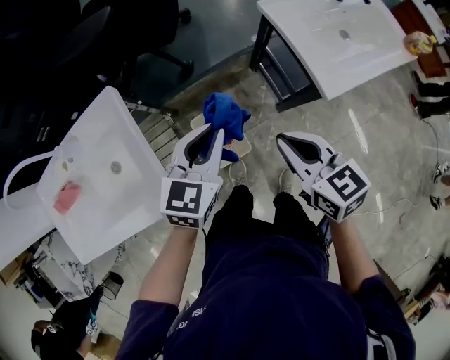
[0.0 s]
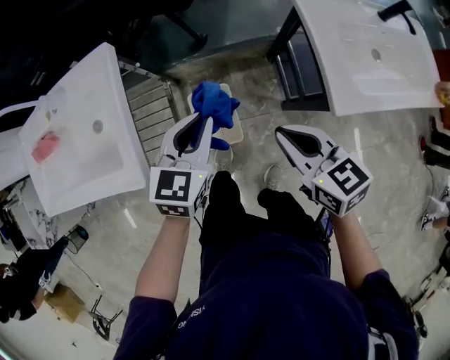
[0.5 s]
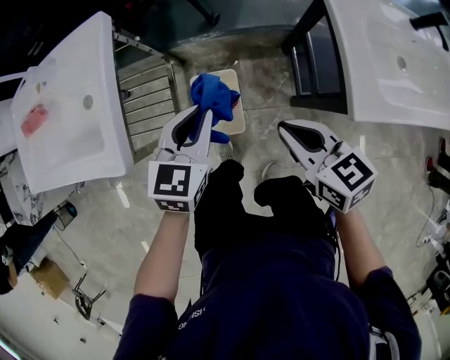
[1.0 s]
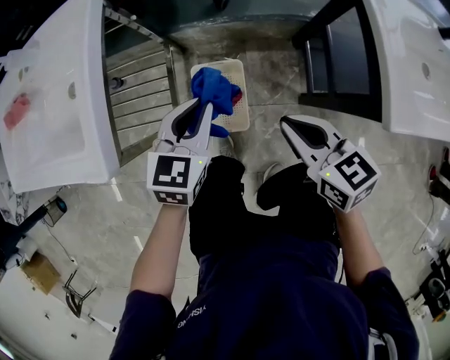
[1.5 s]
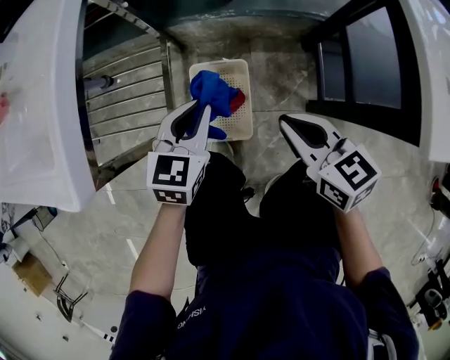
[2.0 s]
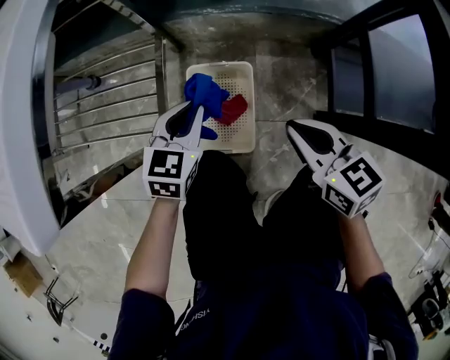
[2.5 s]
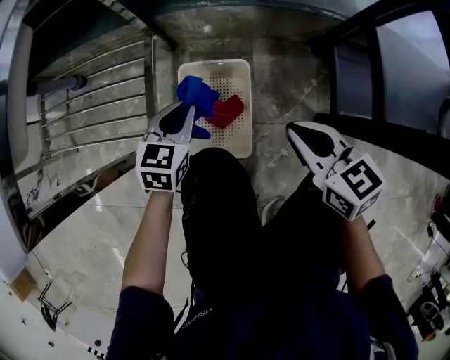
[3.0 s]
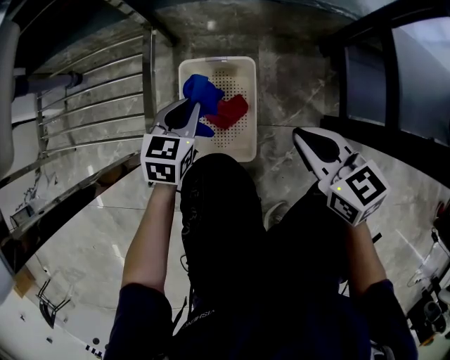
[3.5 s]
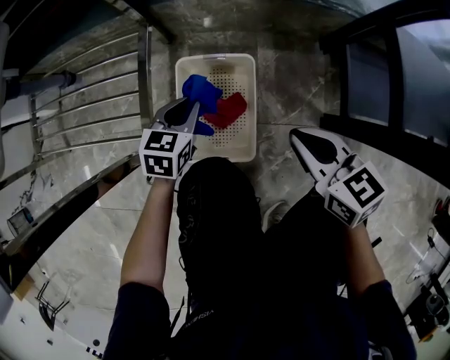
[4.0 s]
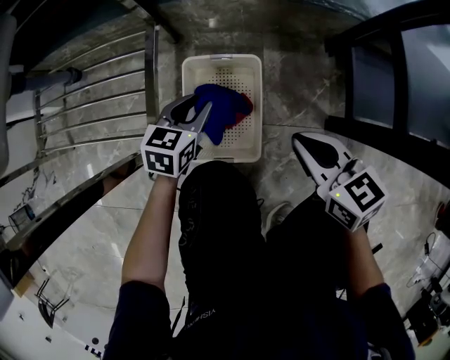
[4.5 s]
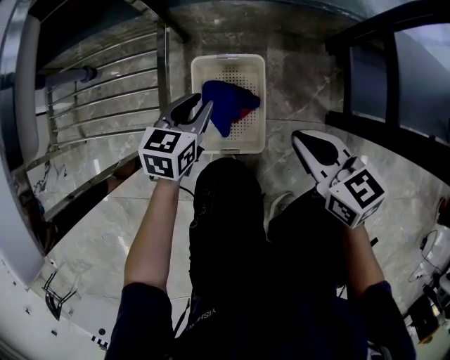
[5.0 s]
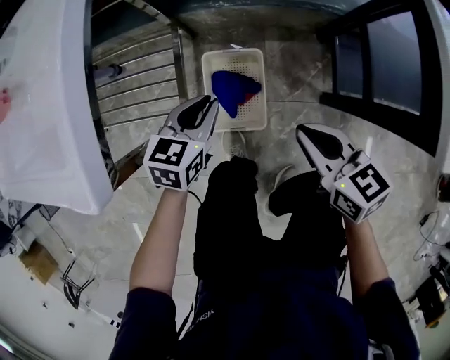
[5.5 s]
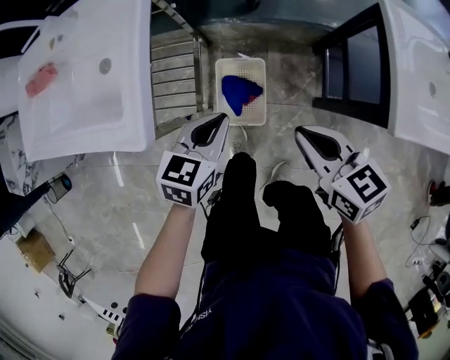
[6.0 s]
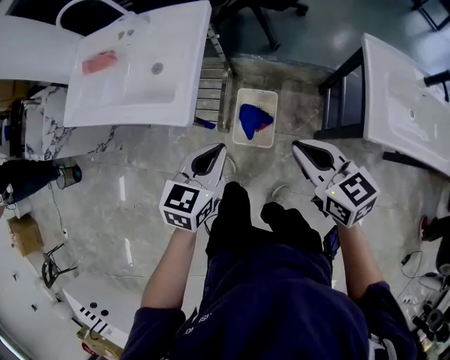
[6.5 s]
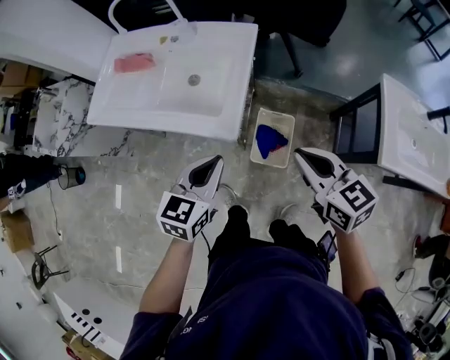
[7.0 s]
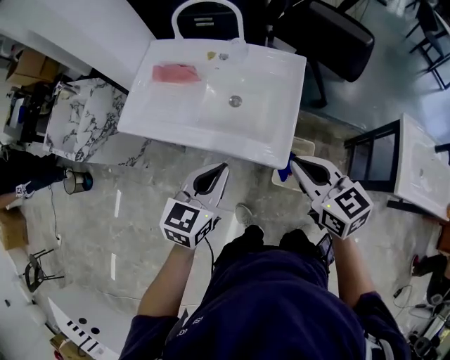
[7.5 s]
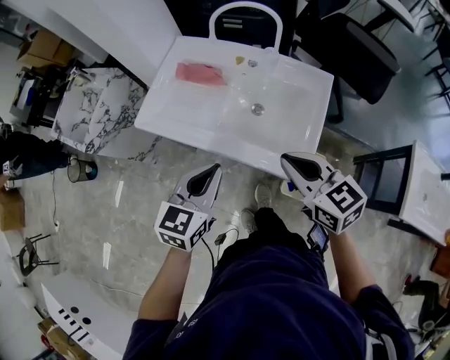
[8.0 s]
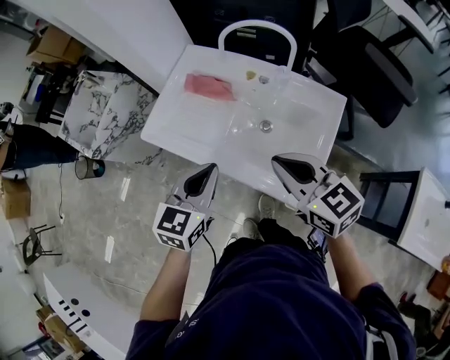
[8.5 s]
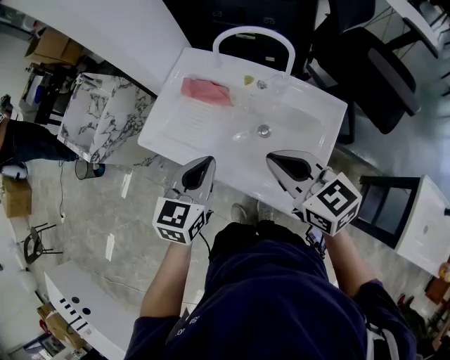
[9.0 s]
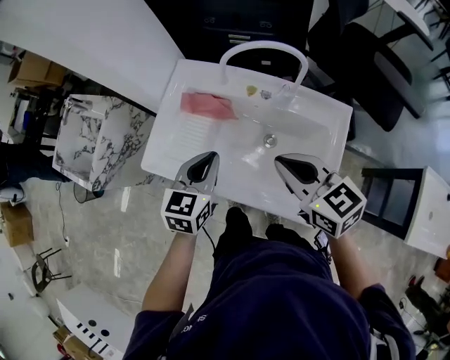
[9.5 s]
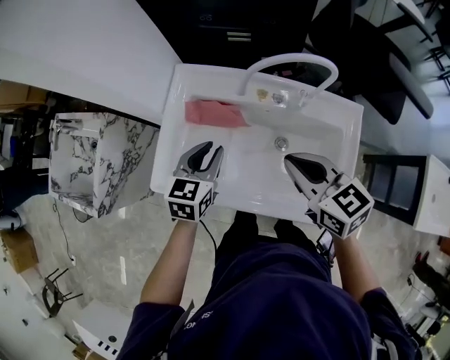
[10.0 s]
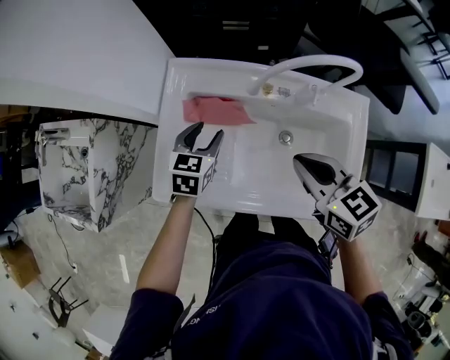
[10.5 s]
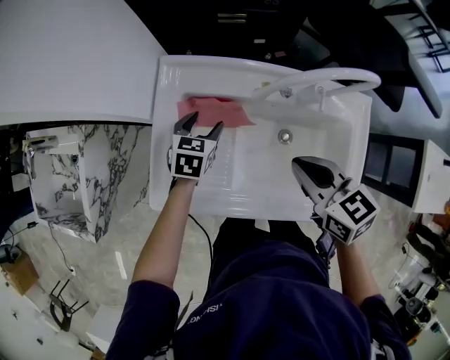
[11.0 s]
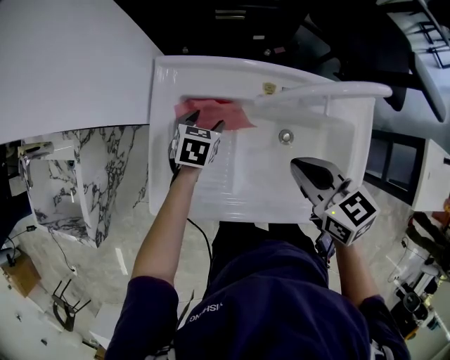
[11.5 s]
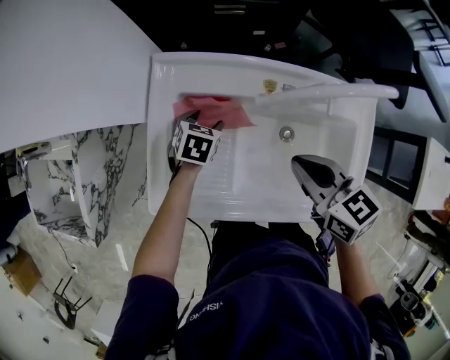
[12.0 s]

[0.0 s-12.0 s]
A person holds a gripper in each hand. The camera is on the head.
0.0 to 2.0 s: The grippers both shift downward by approximately 30 cm. The right gripper swivels roughly 30 degrees. Meanwhile the left gripper swivels approximately 30 degrees.
2.0 to 4.0 s: Both grippers move downward, approximately 25 cm.
4.0 to 6.0 s: The grippers both shift upward by about 40 cm.
6.0 to 8.0 s: Both grippers are carried to the left, some 40 cm. Both grippers travel together upward, roughly 25 cm. The right gripper swivels approximately 30 degrees. Meanwhile the left gripper turns by some 30 degrees.
8.0 to 10.0 s: Both grippers move forward, roughly 25 cm.
10.0 to 12.0 s: The left gripper travels downward and forward by approximately 20 cm, turns by about 30 degrees, and opens. Meanwhile the right gripper goes some 10 cm downward and forward.

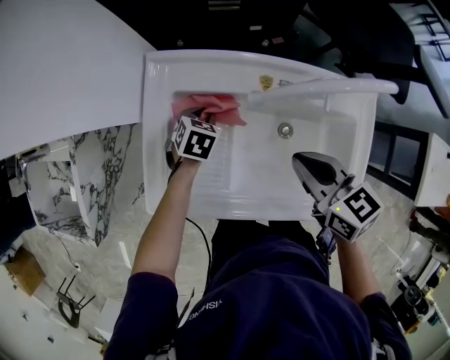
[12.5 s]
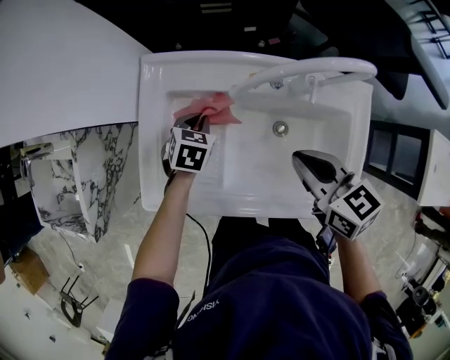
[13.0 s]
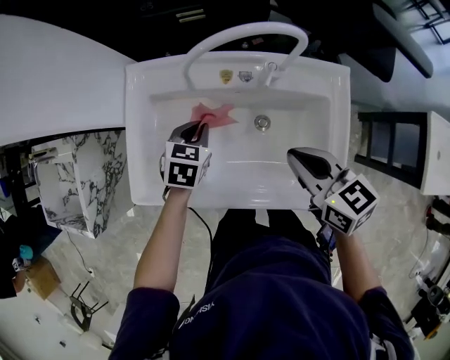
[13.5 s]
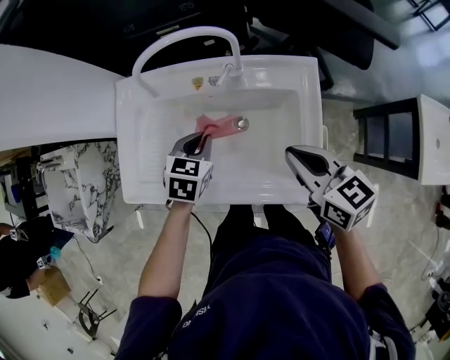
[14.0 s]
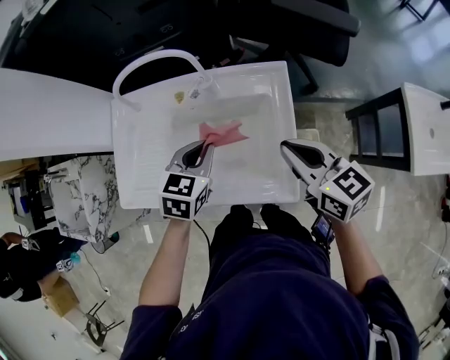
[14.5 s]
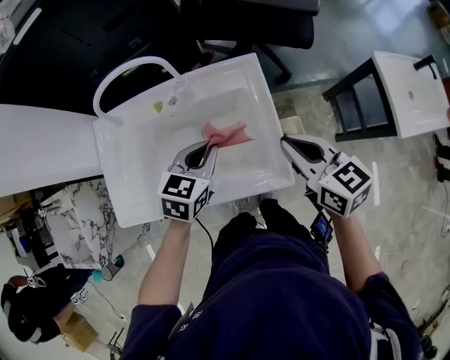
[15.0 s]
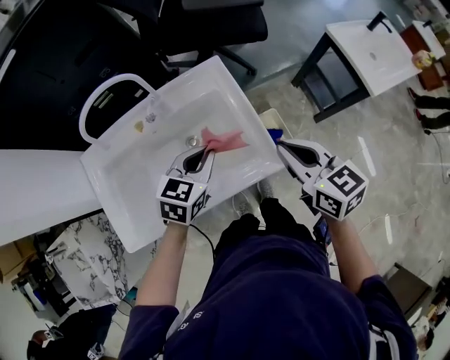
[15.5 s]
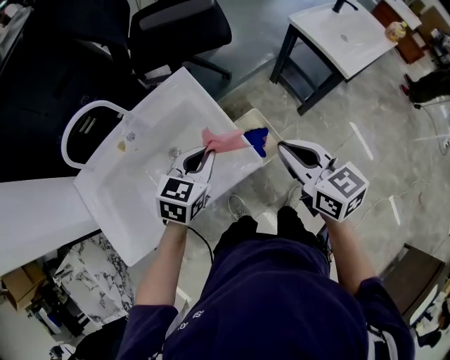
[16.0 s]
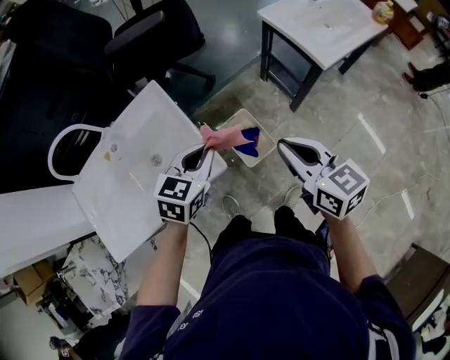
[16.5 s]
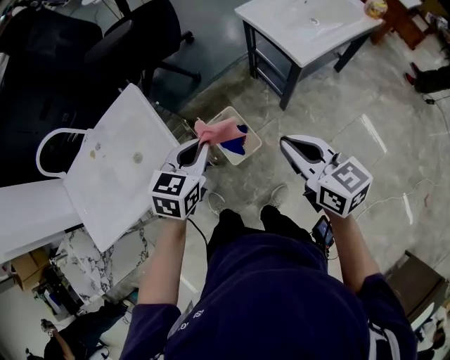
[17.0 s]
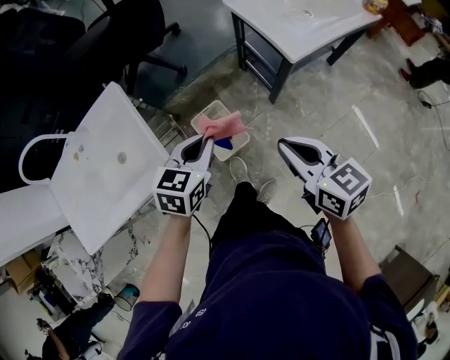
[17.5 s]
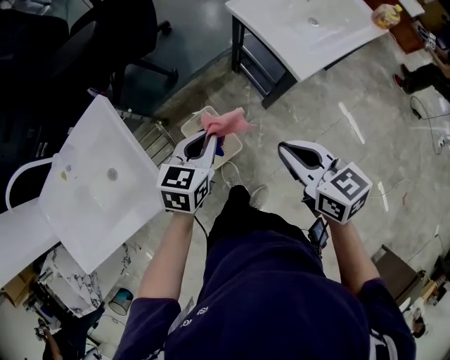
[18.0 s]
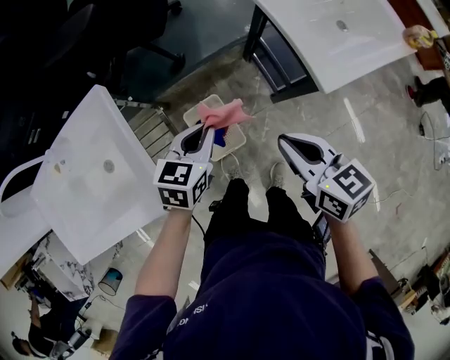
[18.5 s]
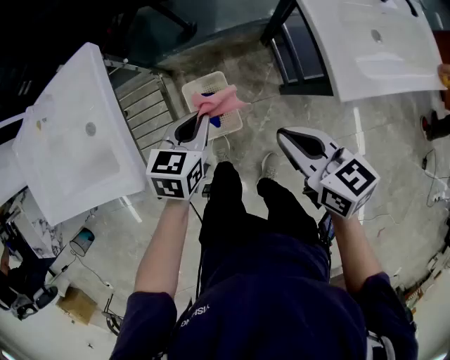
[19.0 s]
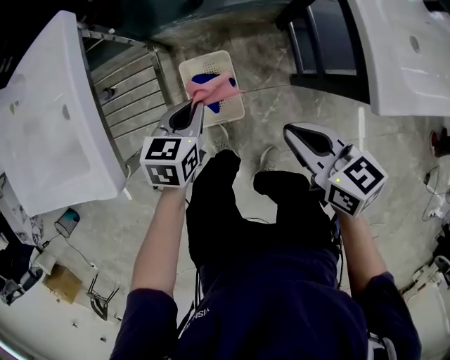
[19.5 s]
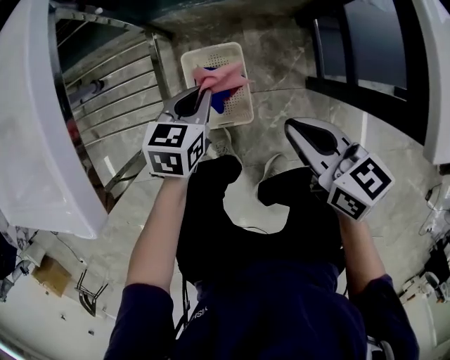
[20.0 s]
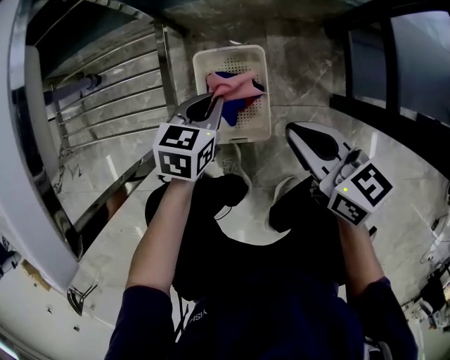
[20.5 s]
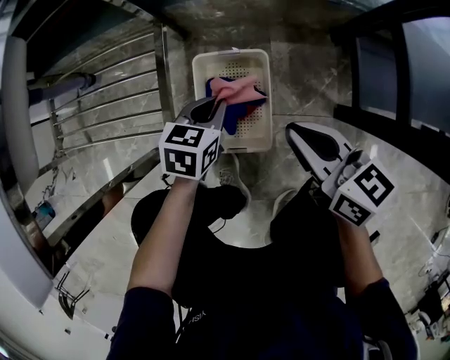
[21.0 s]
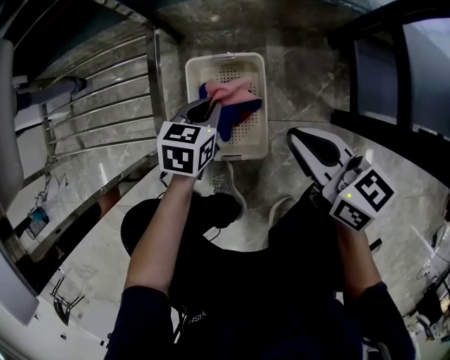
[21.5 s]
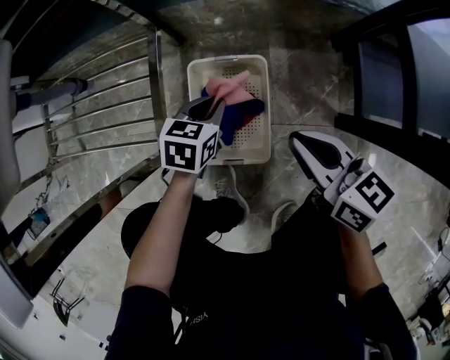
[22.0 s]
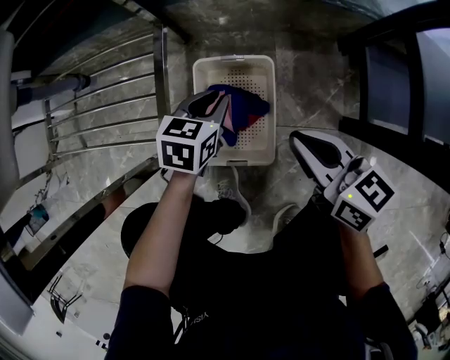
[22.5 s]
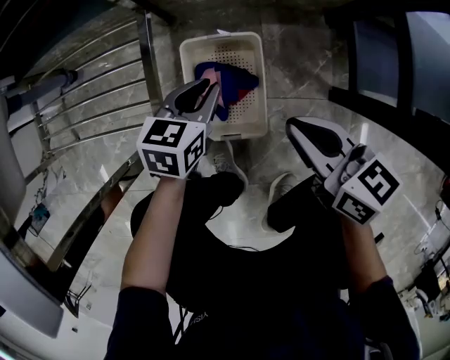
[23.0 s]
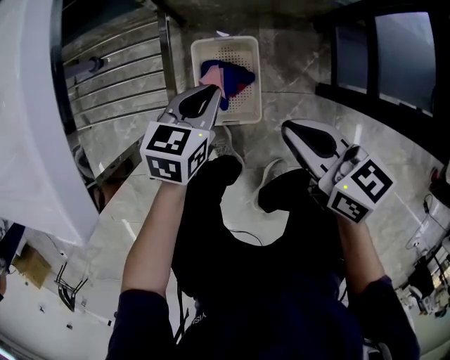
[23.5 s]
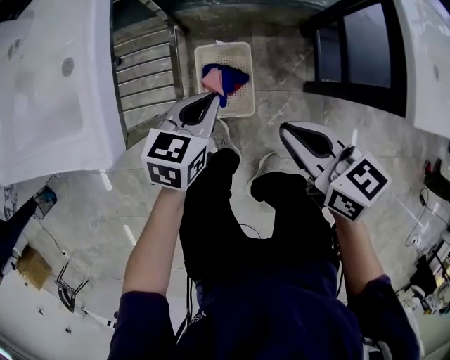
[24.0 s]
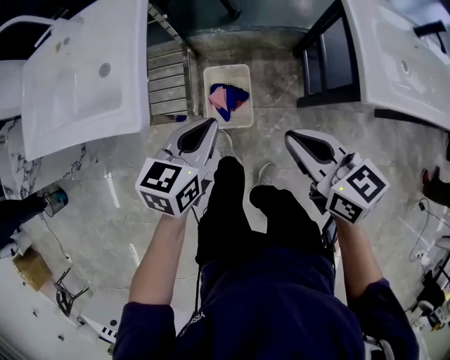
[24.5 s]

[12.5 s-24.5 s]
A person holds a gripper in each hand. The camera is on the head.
12.5 to 14.5 s: The right gripper travels to the right and backward by some 30 cm; the left gripper moves to the right, upward and backward, about 40 cm, and swivels roughly 20 degrees.
14.5 to 16.5 s: The right gripper changes place by approximately 35 cm, and rotates about 40 degrees. The left gripper moves roughly 30 cm, and changes its angle by roughly 40 degrees.
16.5 to 18.5 s: Both grippers move forward, to the right and downward, about 25 cm.
18.5 to 20.5 s: Both grippers move downward, some 40 cm. The right gripper changes its angle by about 30 degrees. The left gripper rotates roughly 20 degrees.
20.5 to 22.5 s: Both grippers travel together downward, about 10 cm.
22.5 to 24.5 s: Both grippers travel together upward, approximately 40 cm.

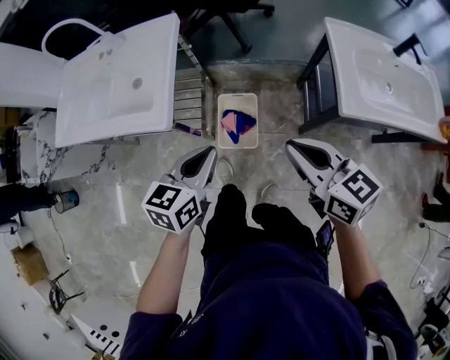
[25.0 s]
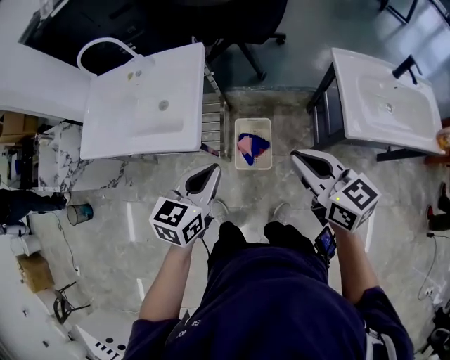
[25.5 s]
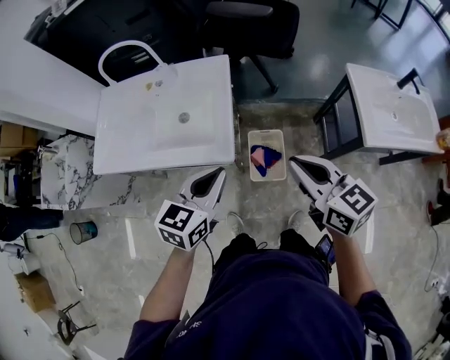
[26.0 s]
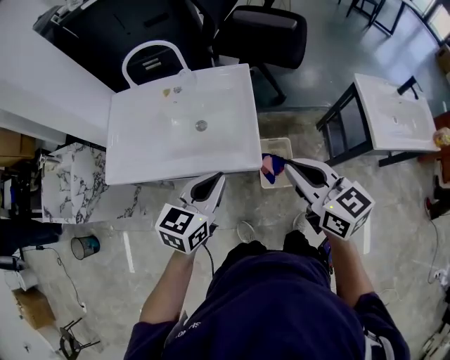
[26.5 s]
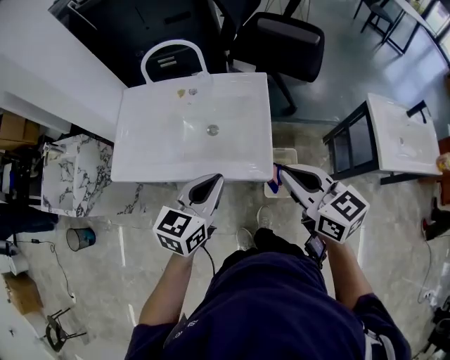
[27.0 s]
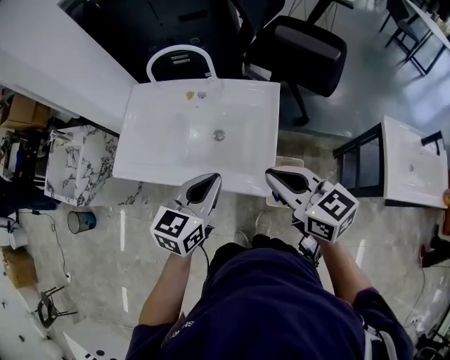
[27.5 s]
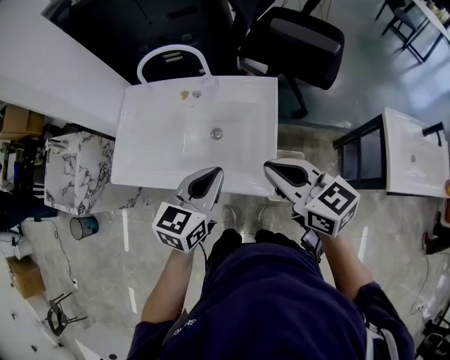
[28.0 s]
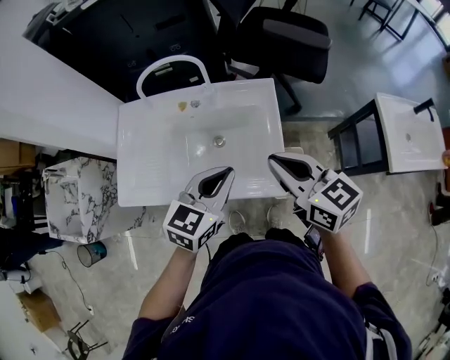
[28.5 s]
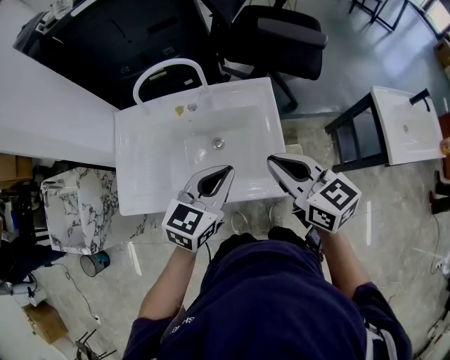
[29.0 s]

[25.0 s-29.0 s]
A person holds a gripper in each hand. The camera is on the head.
25.0 to 27.0 s: The right gripper moves to the left, approximately 35 cm. Meanwhile the left gripper moves to the left and upward, roughly 35 cm.
27.0 to 29.0 s: The right gripper heads forward and to the left, covering approximately 15 cm. Meanwhile the left gripper heads forward, covering about 10 cm.
